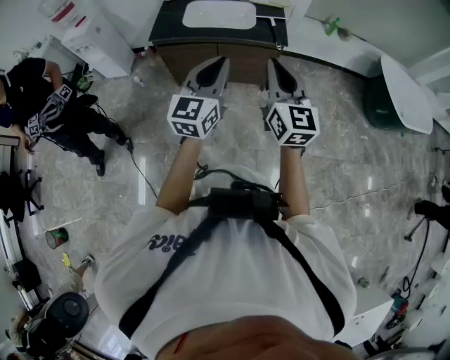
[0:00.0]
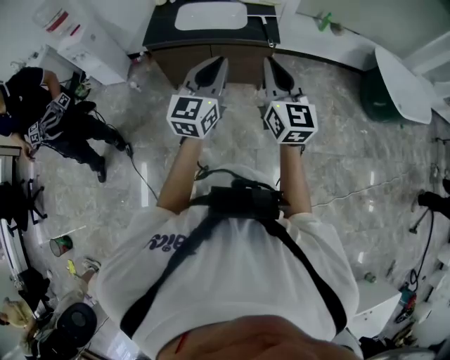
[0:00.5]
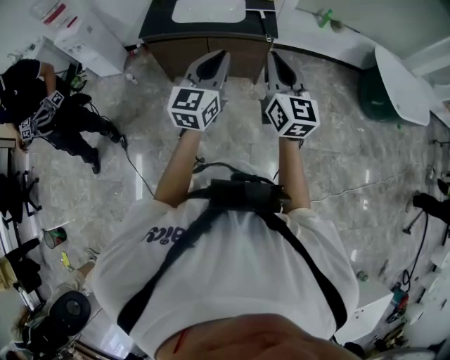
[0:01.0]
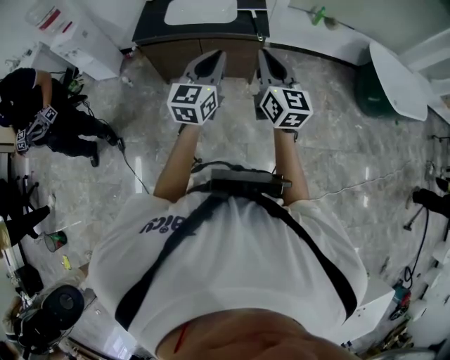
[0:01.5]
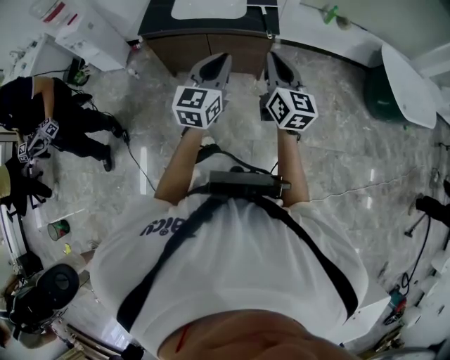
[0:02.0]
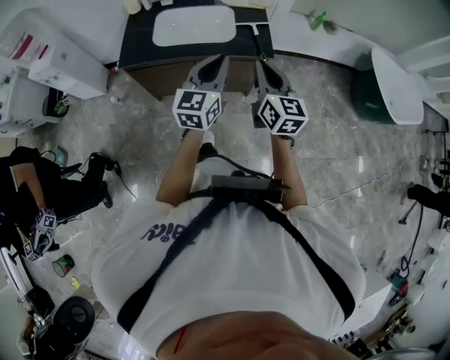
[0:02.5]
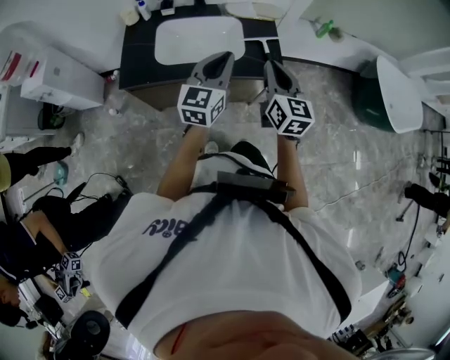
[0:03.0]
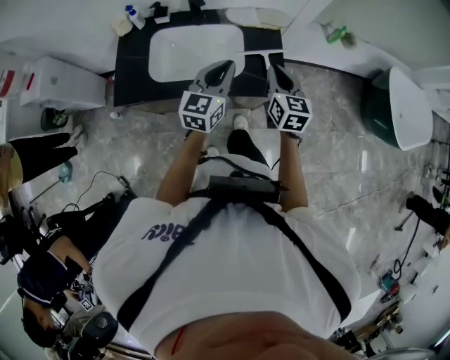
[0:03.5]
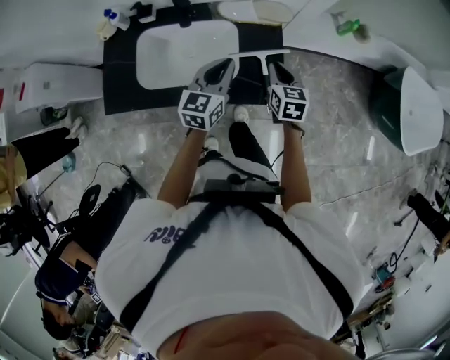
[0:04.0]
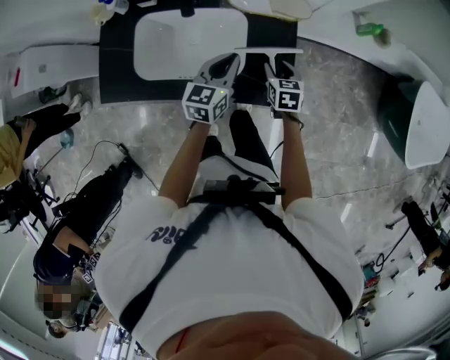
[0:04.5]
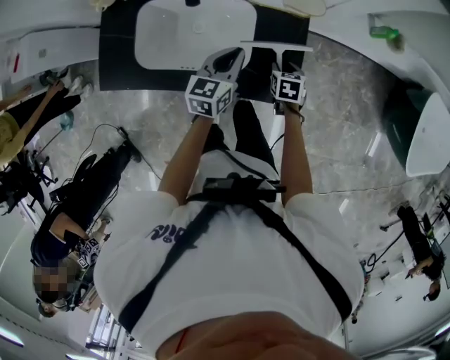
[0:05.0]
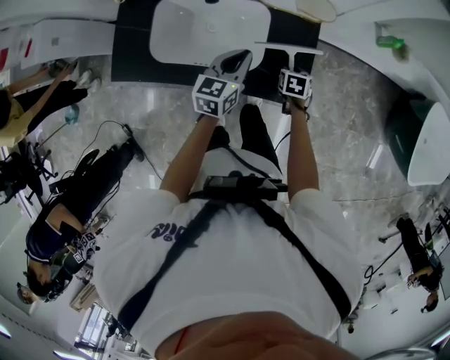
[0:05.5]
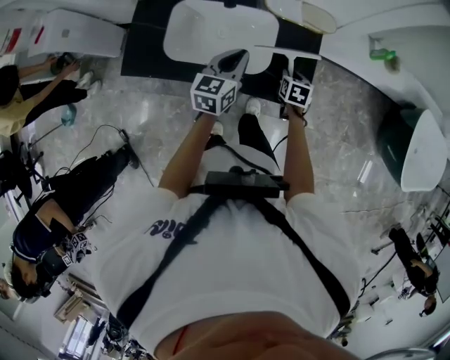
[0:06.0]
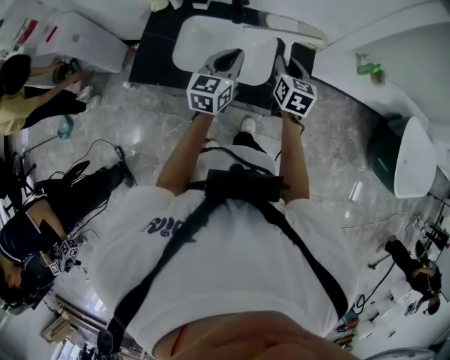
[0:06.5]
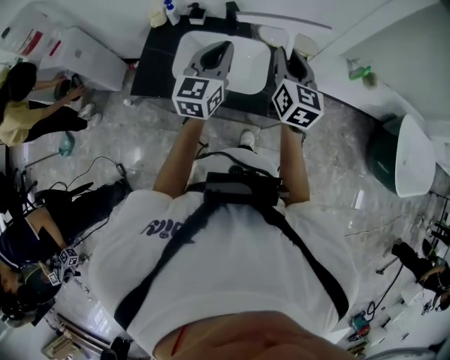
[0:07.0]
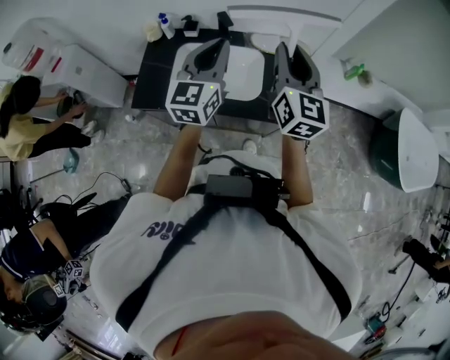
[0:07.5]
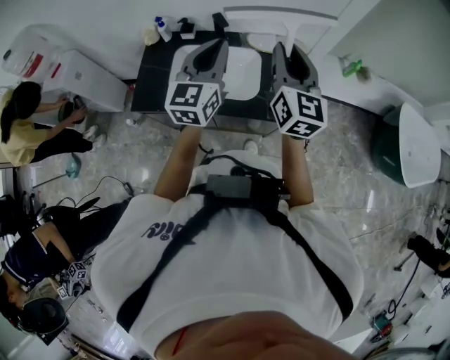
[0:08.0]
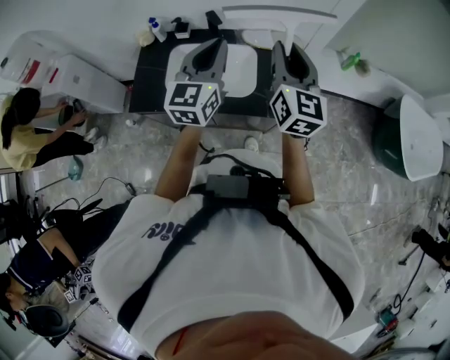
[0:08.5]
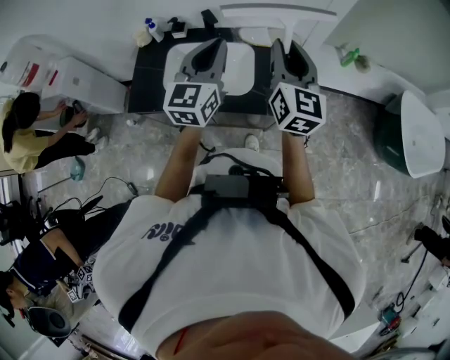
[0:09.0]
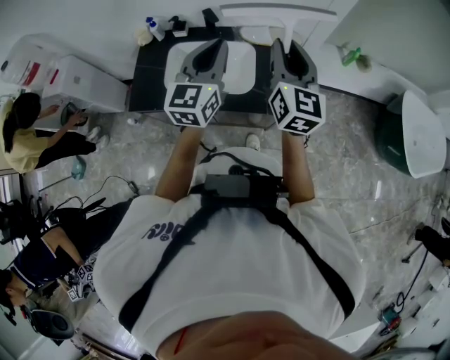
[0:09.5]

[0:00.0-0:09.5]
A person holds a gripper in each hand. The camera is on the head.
0:00.0 to 0:02.0: The right gripper travels to the right and downward by about 10 cm. The left gripper goes some 5 cm to the right.
0:02.0 to 0:04.0: The two grippers travel together, forward, approximately 50 cm. The right gripper travels downward by some 25 cm, and points its fingers approximately 40 degrees further downward.
0:04.0 to 0:05.5: The left gripper travels downward by roughly 10 cm. The right gripper heads downward, covering approximately 20 cm, rotates approximately 30 degrees, and opens up.
0:05.5 to 0:07.5: The right gripper travels upward by roughly 50 cm, and tilts its fingers approximately 70 degrees upward. Meanwhile the left gripper moves upward, approximately 30 cm, and turns by some 30 degrees.
0:07.5 to 0:09.5: The left gripper goes approximately 5 cm to the right.

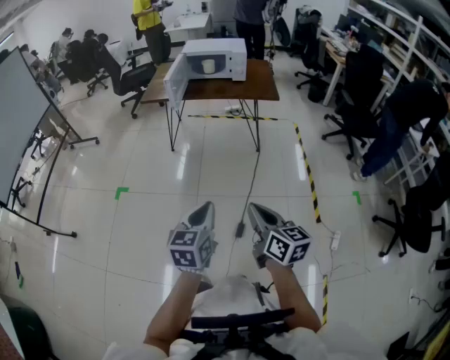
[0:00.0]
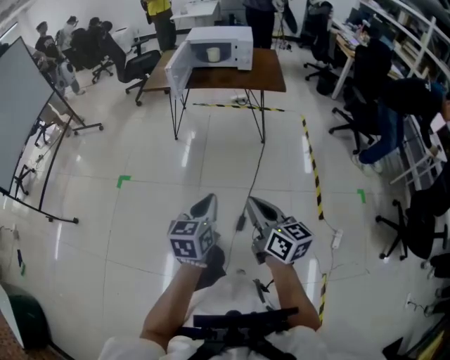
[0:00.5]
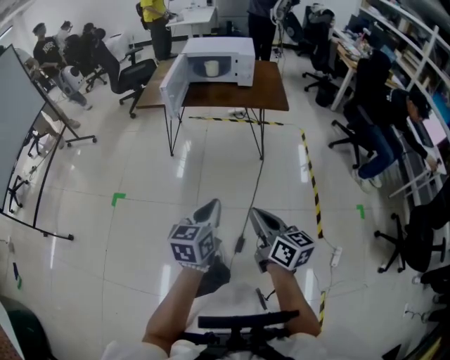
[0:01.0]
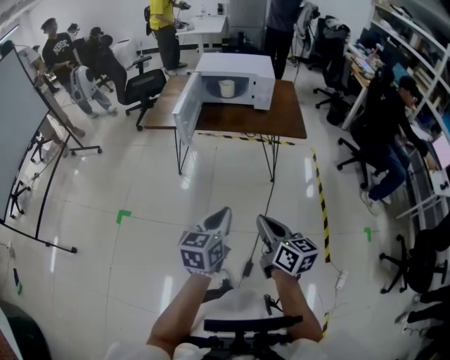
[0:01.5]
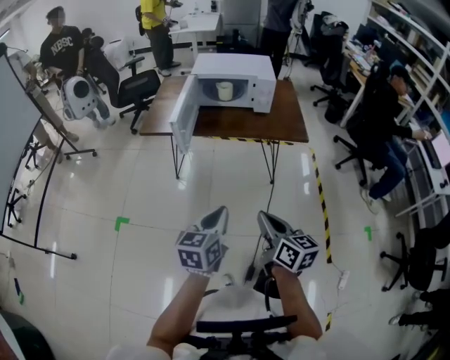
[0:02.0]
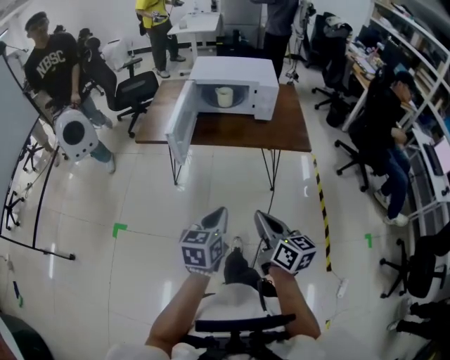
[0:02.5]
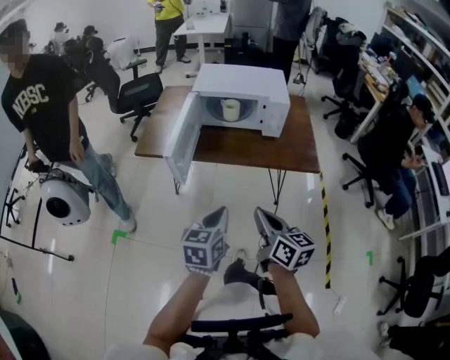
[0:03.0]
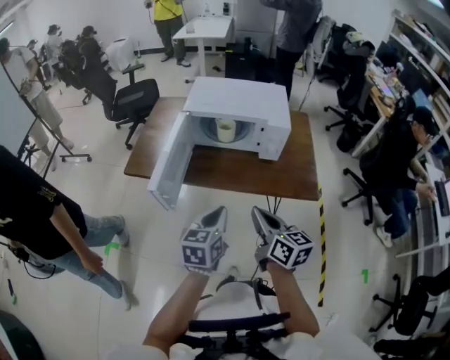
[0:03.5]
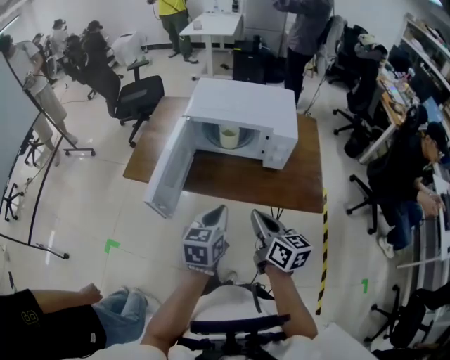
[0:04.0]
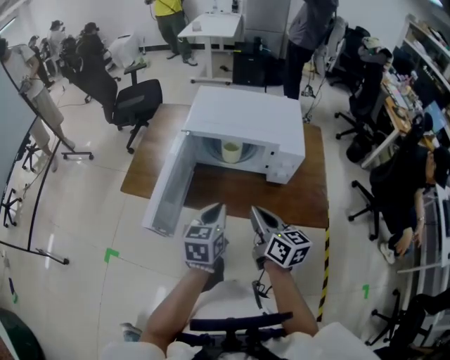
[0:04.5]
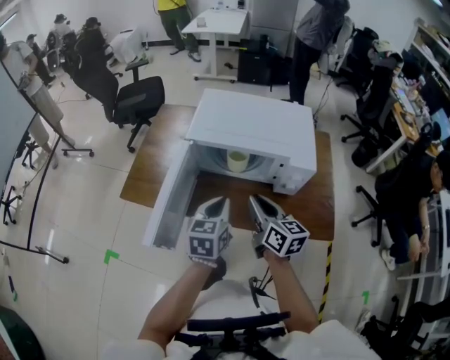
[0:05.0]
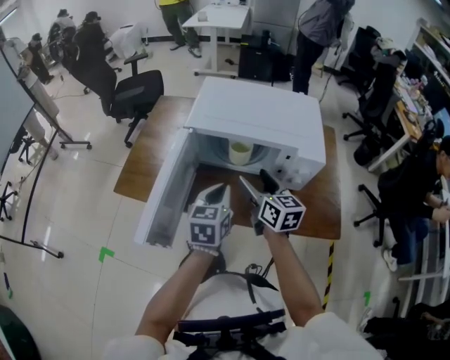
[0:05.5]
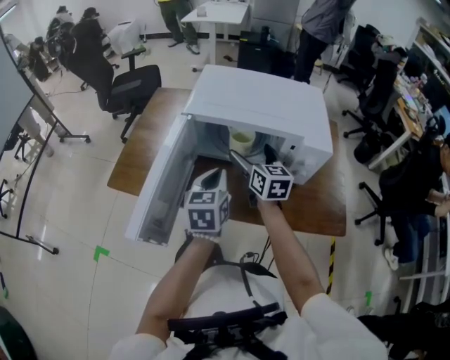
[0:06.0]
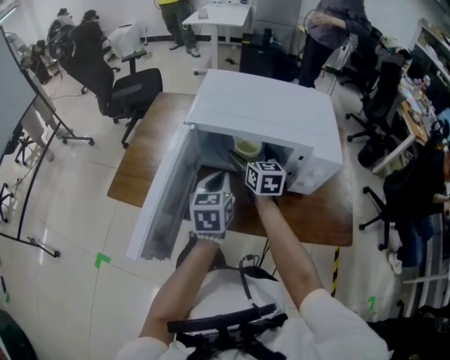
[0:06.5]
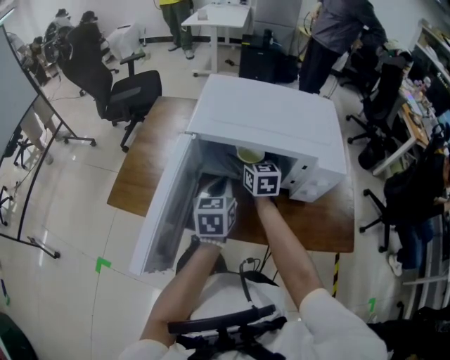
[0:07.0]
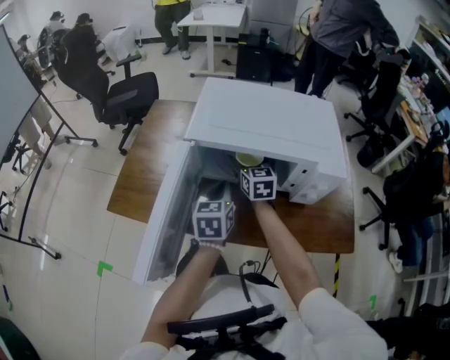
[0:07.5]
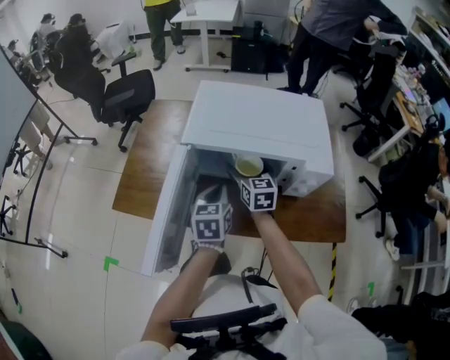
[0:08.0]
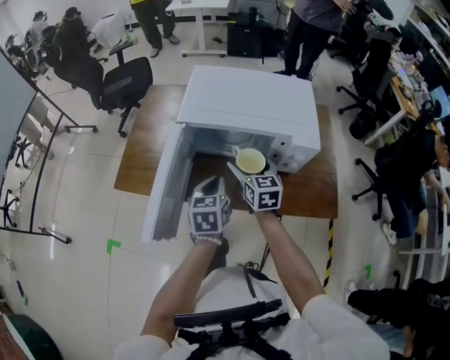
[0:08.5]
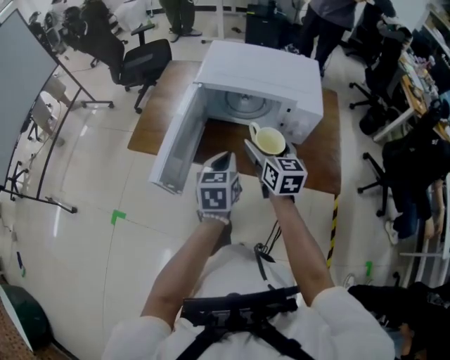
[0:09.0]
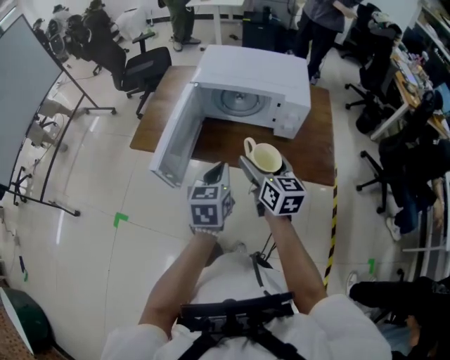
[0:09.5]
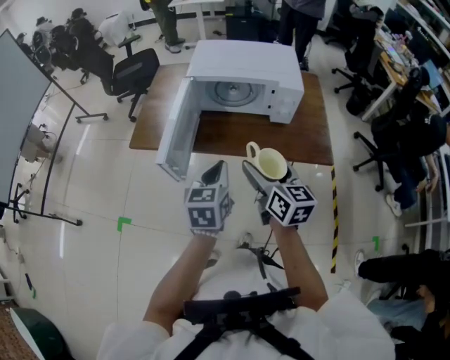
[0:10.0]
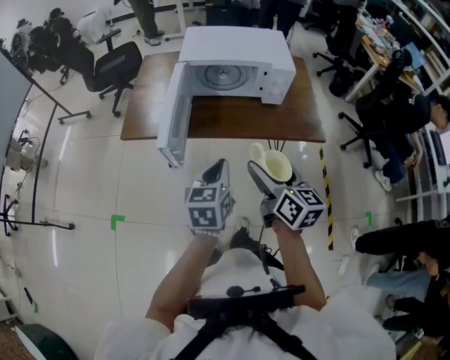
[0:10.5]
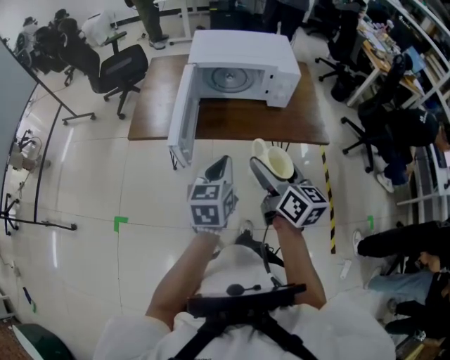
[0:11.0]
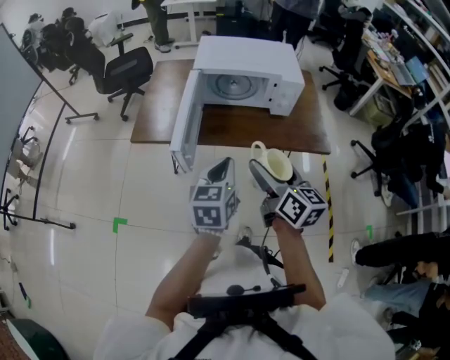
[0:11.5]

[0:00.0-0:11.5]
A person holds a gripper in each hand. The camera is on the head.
0:00.0 to 0:02.0: Both grippers travel together forward, some 35 cm.
0:02.0 to 0:04.0: Both grippers move forward, approximately 35 cm.
0:04.0 to 0:06.0: Both grippers move forward, approximately 25 cm. The right gripper changes its angle by about 20 degrees, and opens up.
0:06.0 to 0:07.5: The left gripper moves forward, about 5 cm. Meanwhile the right gripper heads forward, covering roughly 10 cm.
0:07.5 to 0:09.5: Both grippers move backward and upward, roughly 35 cm.
0:09.5 to 0:11.5: The left gripper moves backward, about 10 cm; the right gripper goes approximately 15 cm backward and upward.

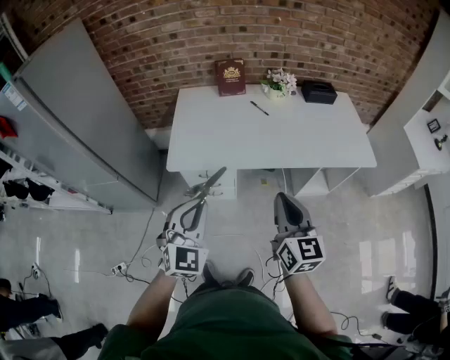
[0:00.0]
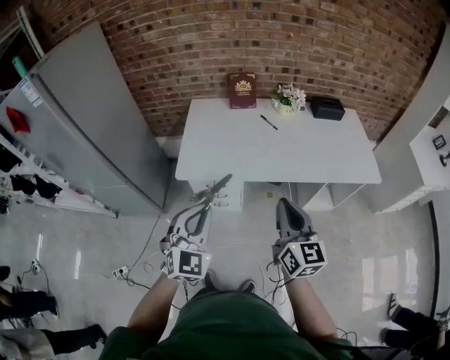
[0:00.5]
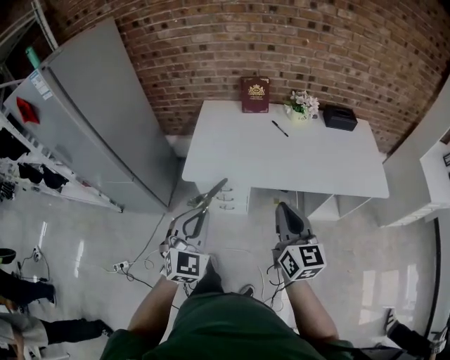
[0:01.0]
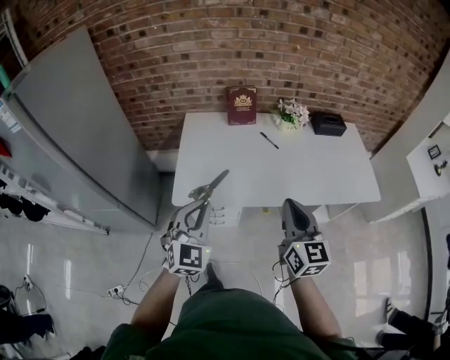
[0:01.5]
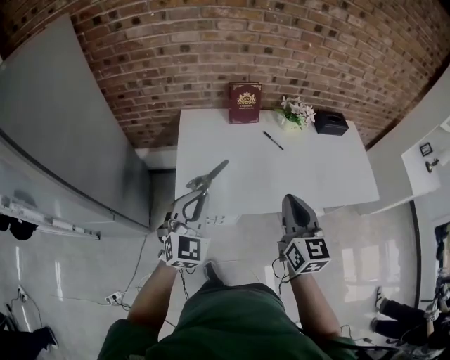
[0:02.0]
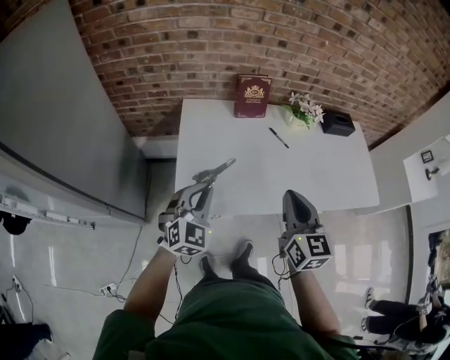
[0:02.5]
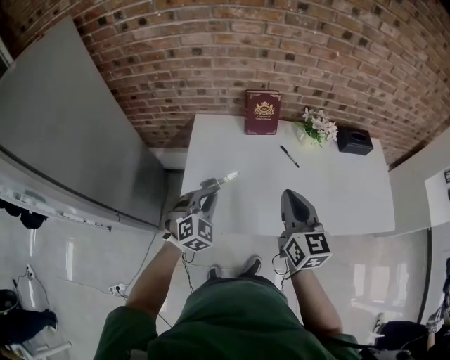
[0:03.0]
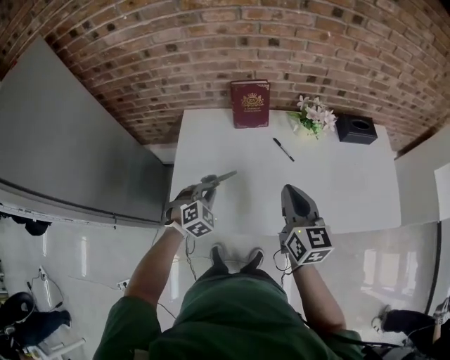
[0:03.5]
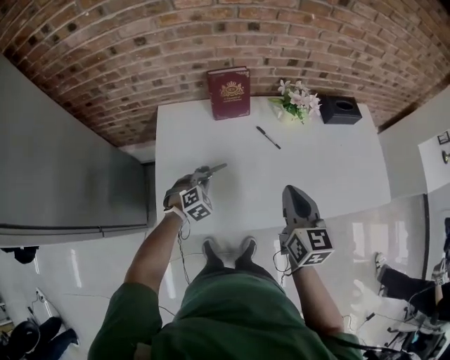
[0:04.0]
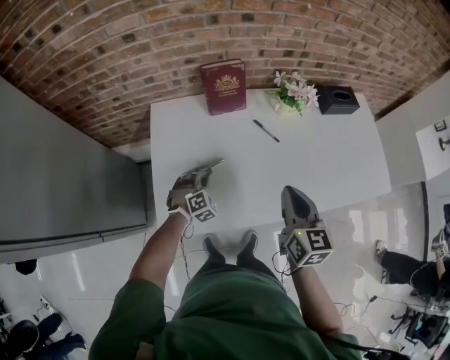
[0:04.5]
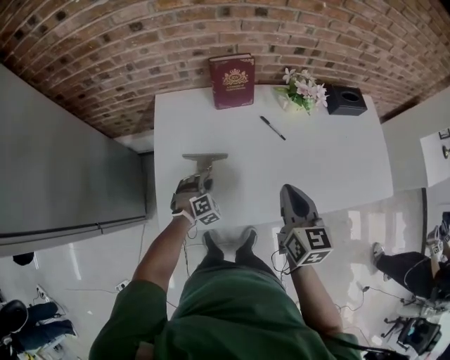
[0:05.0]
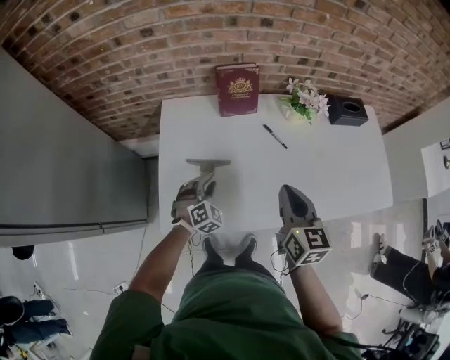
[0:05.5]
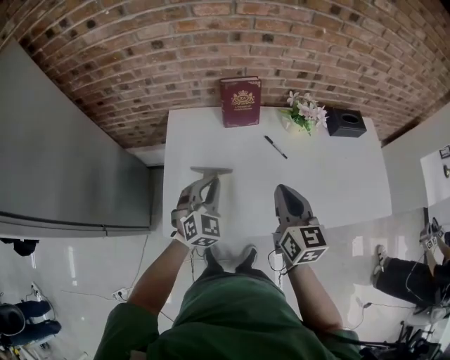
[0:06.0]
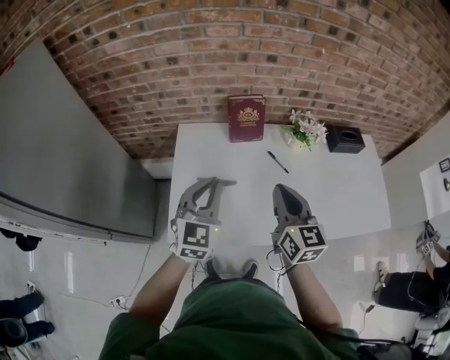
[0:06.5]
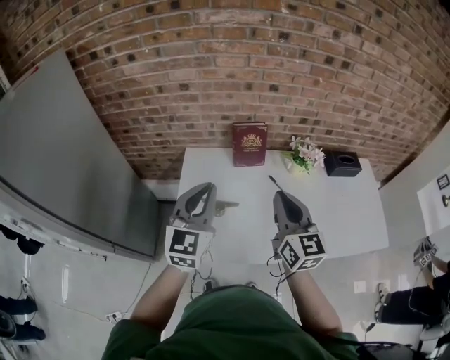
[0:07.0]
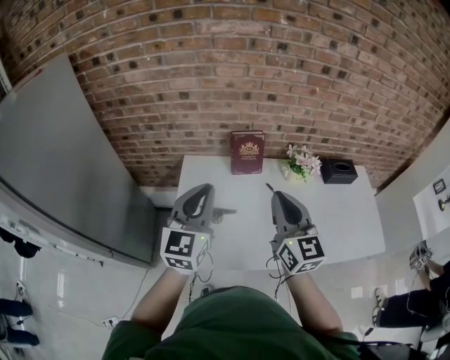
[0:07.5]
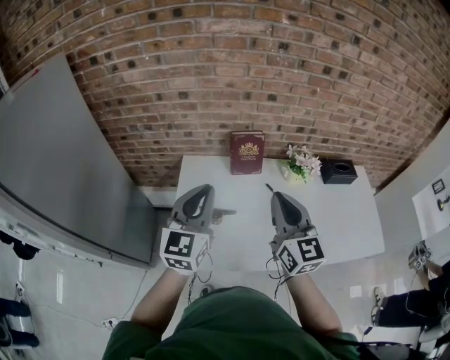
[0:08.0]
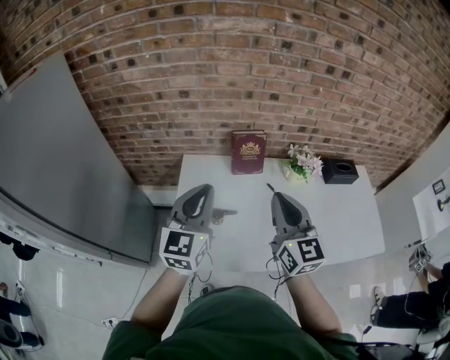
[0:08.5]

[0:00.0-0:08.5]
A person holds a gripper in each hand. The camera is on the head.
0:00.0 to 0:02.0: Both grippers travel together forward and to the left, roughly 25 cm.
0:02.0 to 0:04.0: The right gripper shifts about 20 cm forward, to the right and downward; the left gripper moves downward and forward, approximately 35 cm, and tilts its fingers about 40 degrees downward.
0:04.0 to 0:06.5: The left gripper shifts roughly 30 cm upward, and points its fingers roughly 40 degrees further upward; the right gripper travels to the left and upward by about 10 cm.
0:06.5 to 0:08.5: The grippers both shift upward by approximately 10 cm.
